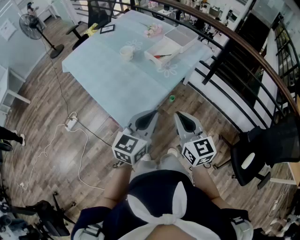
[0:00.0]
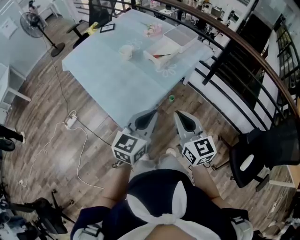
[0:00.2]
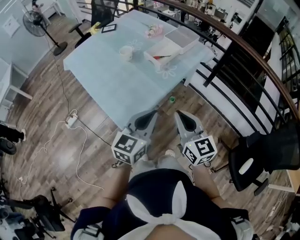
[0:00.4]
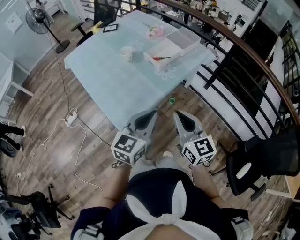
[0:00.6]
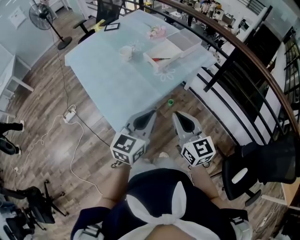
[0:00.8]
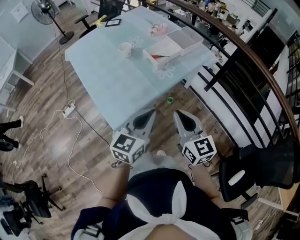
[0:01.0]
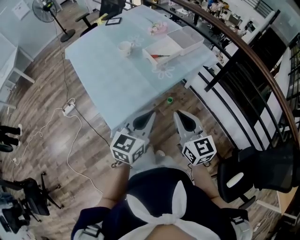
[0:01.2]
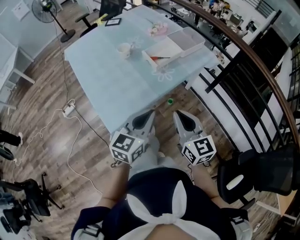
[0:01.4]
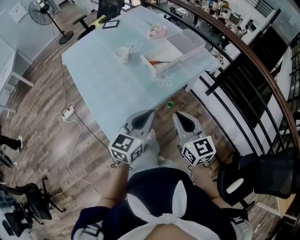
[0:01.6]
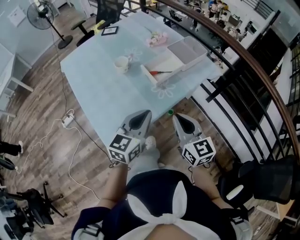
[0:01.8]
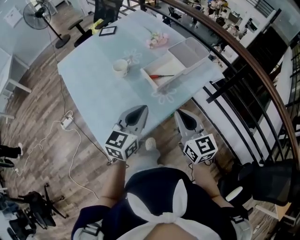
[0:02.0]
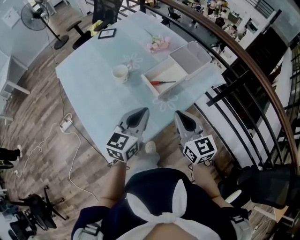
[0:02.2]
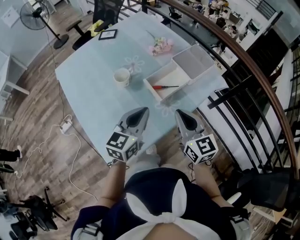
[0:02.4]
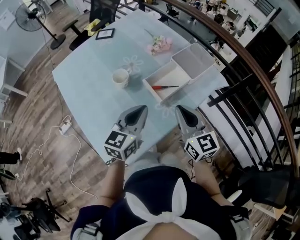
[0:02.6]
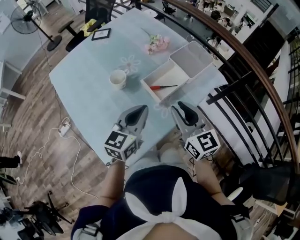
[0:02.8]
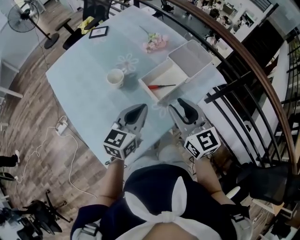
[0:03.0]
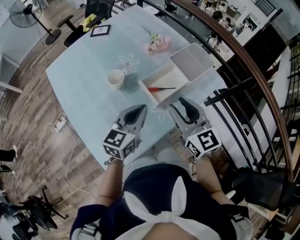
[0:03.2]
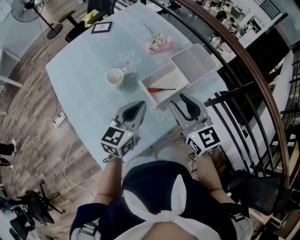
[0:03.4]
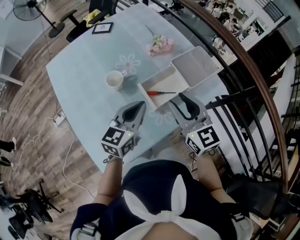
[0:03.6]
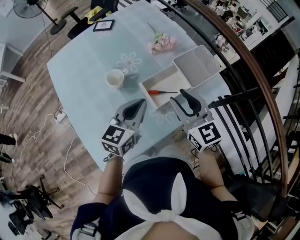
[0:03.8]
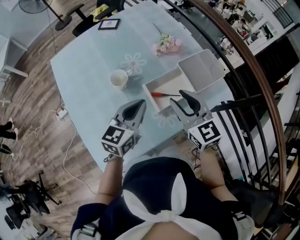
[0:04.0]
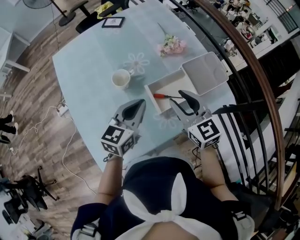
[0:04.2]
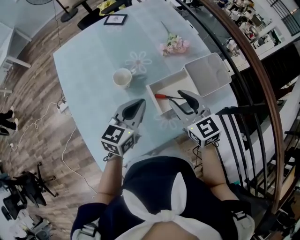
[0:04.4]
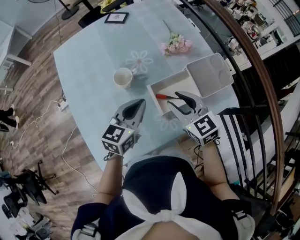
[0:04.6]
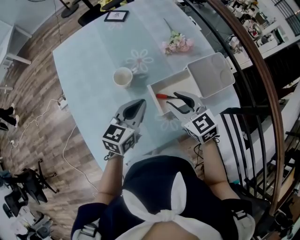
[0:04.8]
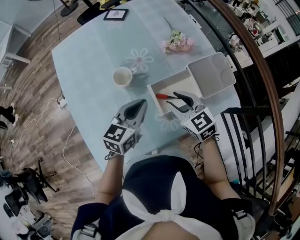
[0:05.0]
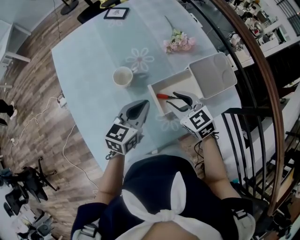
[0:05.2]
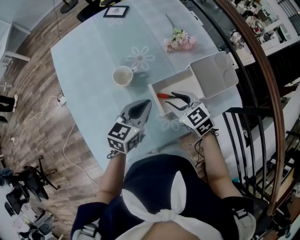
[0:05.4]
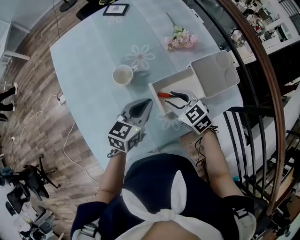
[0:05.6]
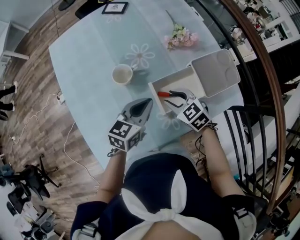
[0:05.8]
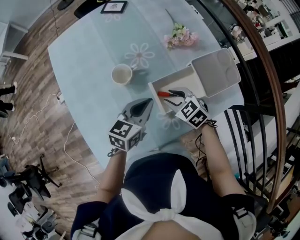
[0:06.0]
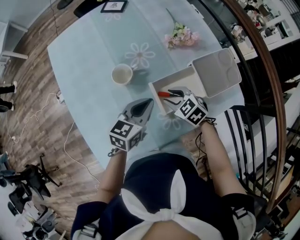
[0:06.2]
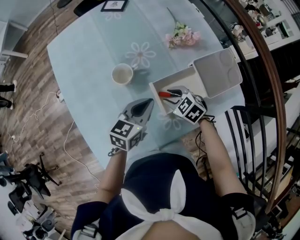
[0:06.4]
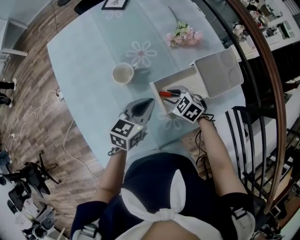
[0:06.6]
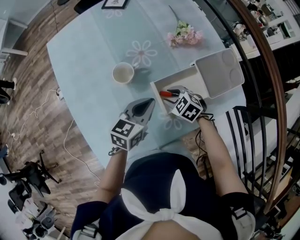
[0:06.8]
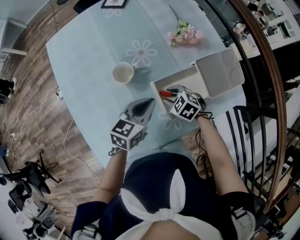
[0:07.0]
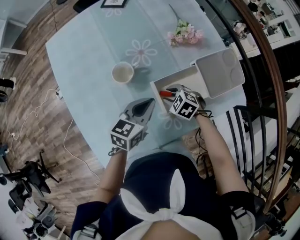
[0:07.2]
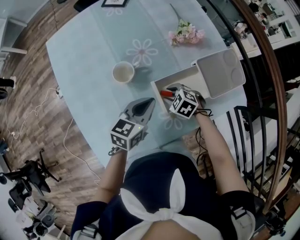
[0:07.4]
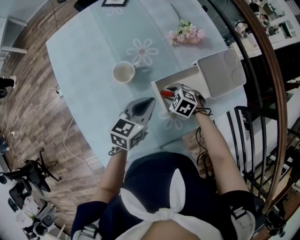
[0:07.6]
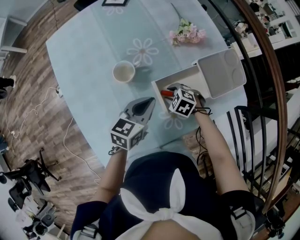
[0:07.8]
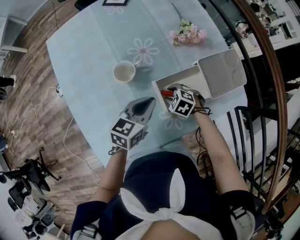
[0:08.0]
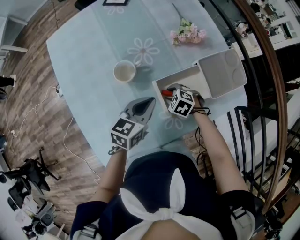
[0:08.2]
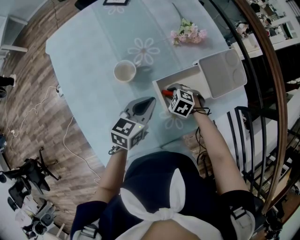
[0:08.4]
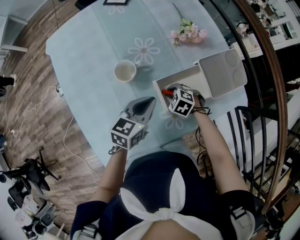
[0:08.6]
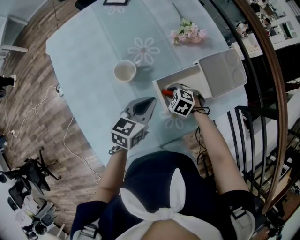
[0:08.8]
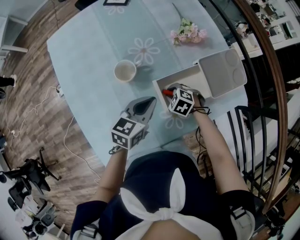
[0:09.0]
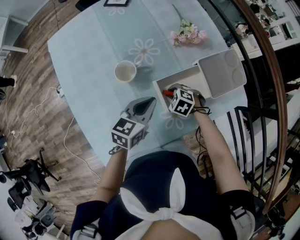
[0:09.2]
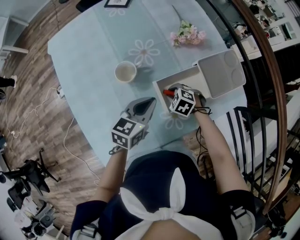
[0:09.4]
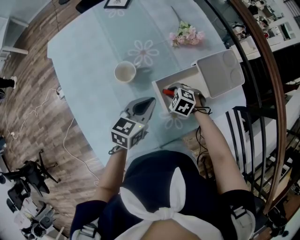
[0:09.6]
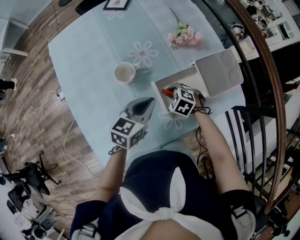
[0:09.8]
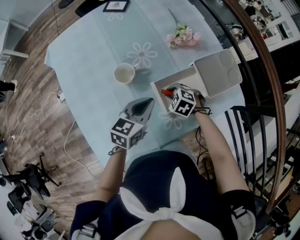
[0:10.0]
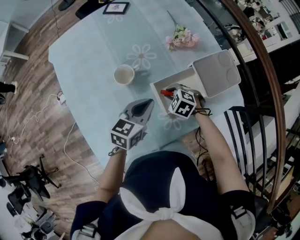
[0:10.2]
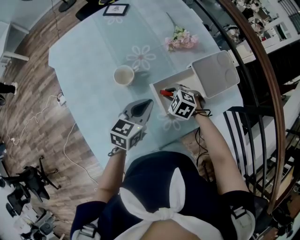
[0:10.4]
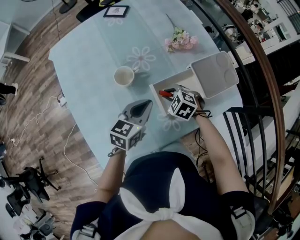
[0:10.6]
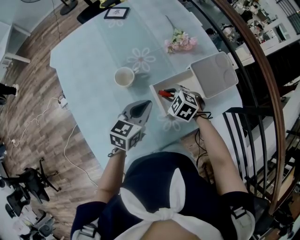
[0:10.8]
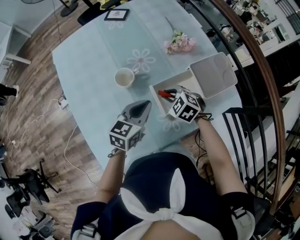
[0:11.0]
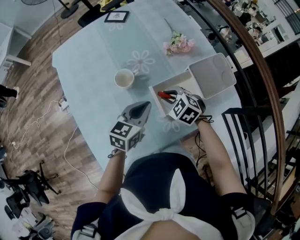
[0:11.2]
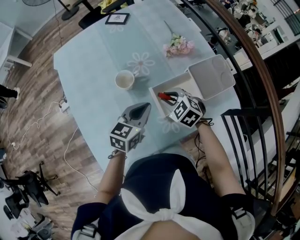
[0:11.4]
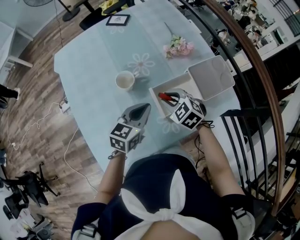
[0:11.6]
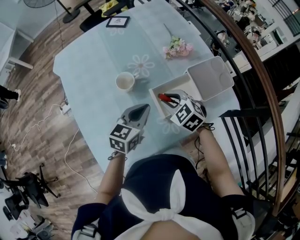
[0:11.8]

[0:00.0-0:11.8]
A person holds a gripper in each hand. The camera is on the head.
0:00.0 to 0:01.4: Both grippers move to the right and forward, some 15 cm.
0:01.4 to 0:03.0: Both grippers travel together forward, some 30 cm. The right gripper opens its fingers.
0:03.0 to 0:04.4: The grippers both shift forward by about 10 cm. The right gripper turns by about 20 degrees.
0:04.4 to 0:06.0: The left gripper travels downward by some 5 cm, while the right gripper shifts approximately 15 cm downward, and changes its angle by approximately 30 degrees.
0:06.0 to 0:07.4: The right gripper moves downward, roughly 10 cm, and swivels about 20 degrees.
0:07.4 to 0:08.8: The grippers move only a little.
0:08.8 to 0:10.4: The right gripper travels upward by approximately 5 cm.
0:10.4 to 0:11.8: The right gripper shifts approximately 10 cm upward.

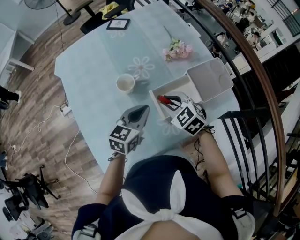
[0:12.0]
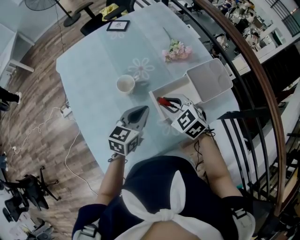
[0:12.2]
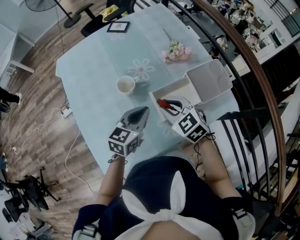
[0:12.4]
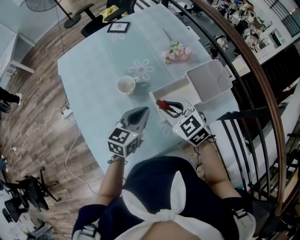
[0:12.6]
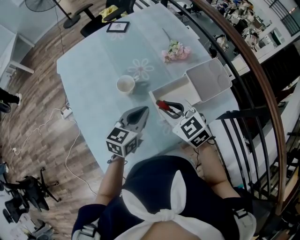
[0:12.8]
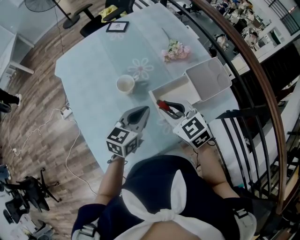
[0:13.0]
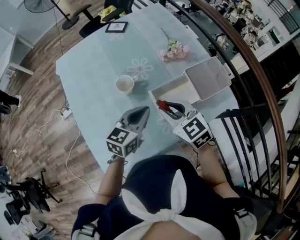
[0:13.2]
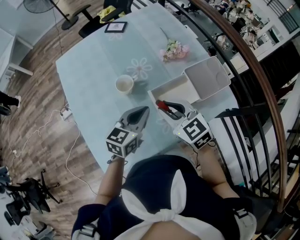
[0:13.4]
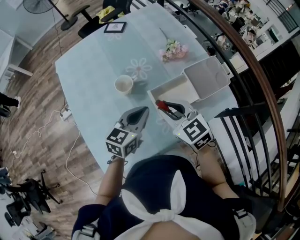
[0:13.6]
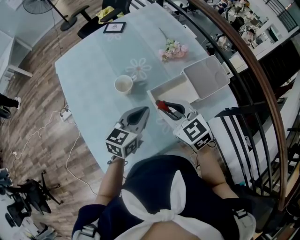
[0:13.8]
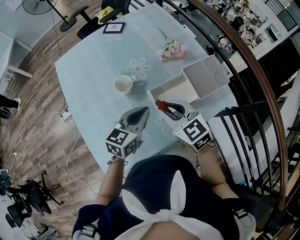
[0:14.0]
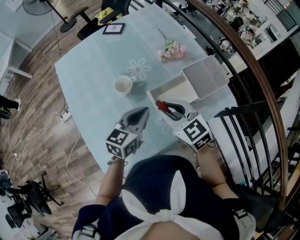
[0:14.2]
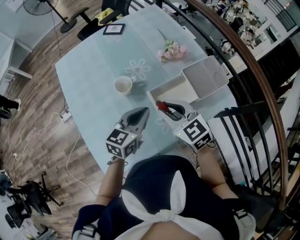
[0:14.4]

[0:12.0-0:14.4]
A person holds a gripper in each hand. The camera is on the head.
0:12.0 to 0:13.2: The right gripper moves upward, about 5 cm.
0:13.2 to 0:14.4: The grippers stay close to where they were, moving slightly.

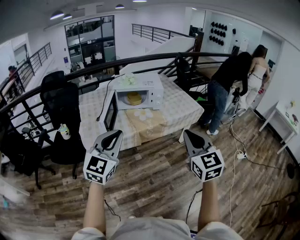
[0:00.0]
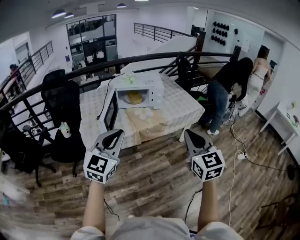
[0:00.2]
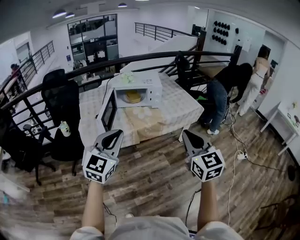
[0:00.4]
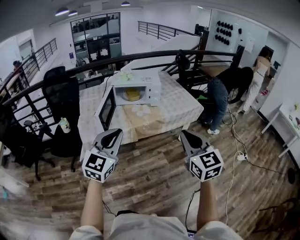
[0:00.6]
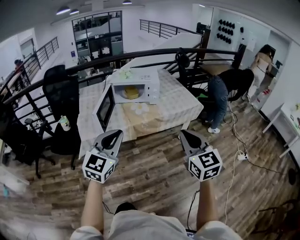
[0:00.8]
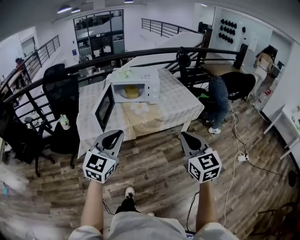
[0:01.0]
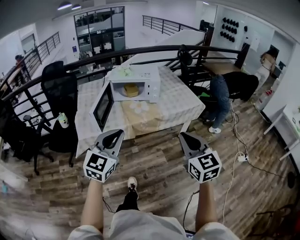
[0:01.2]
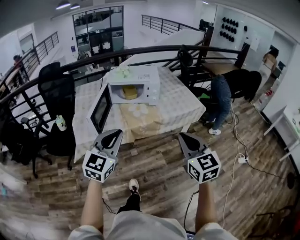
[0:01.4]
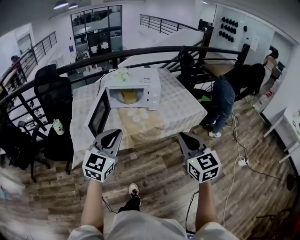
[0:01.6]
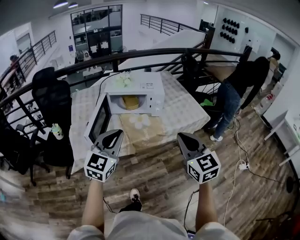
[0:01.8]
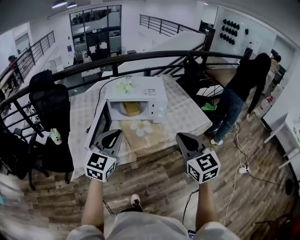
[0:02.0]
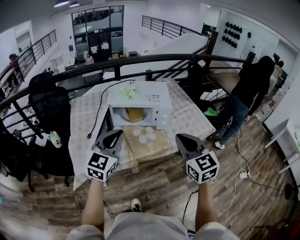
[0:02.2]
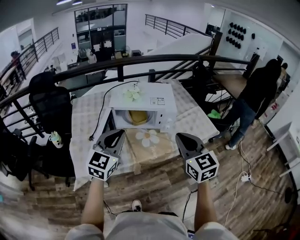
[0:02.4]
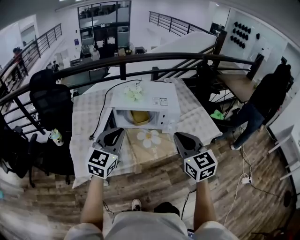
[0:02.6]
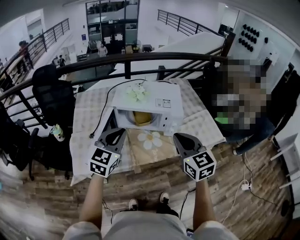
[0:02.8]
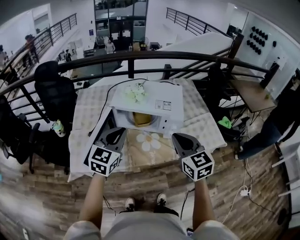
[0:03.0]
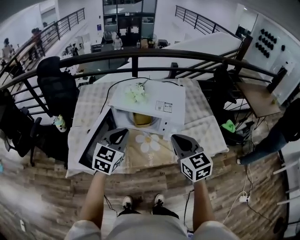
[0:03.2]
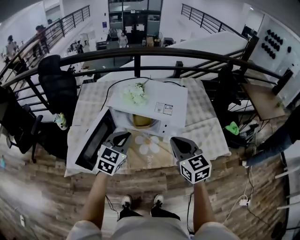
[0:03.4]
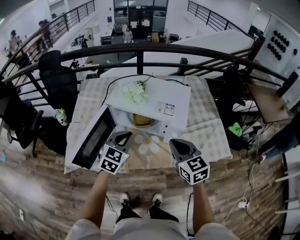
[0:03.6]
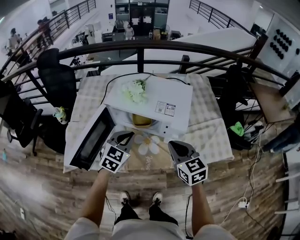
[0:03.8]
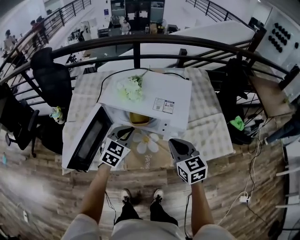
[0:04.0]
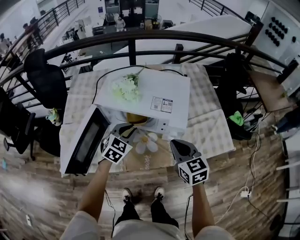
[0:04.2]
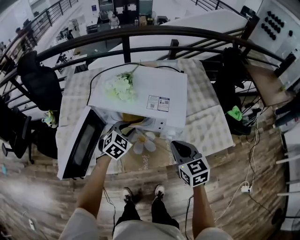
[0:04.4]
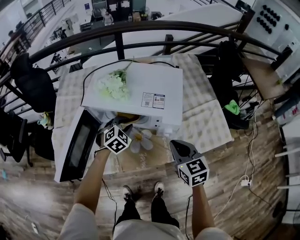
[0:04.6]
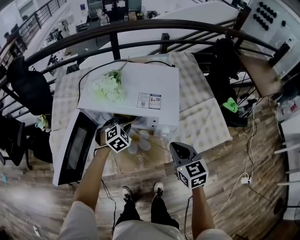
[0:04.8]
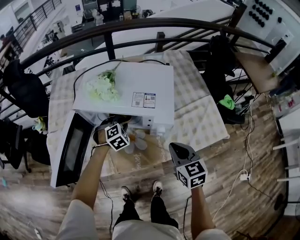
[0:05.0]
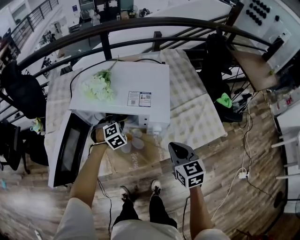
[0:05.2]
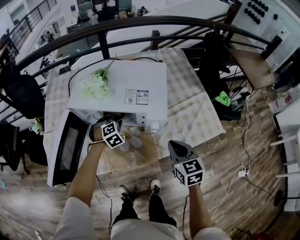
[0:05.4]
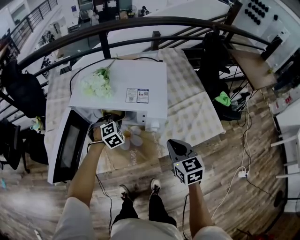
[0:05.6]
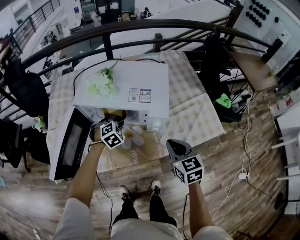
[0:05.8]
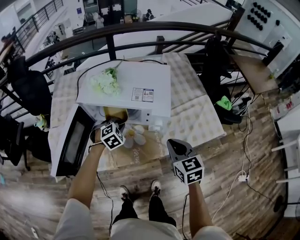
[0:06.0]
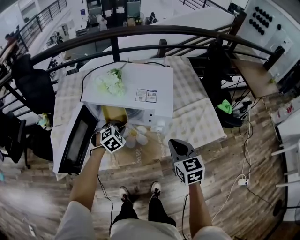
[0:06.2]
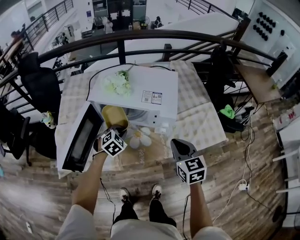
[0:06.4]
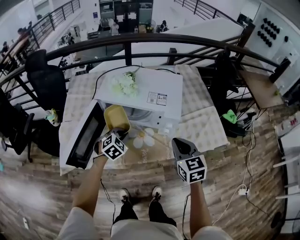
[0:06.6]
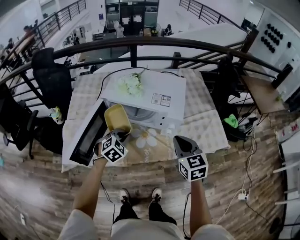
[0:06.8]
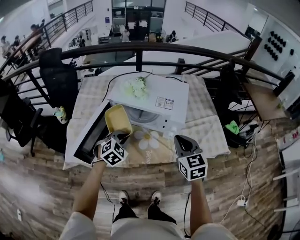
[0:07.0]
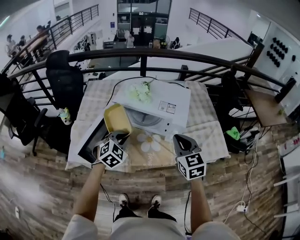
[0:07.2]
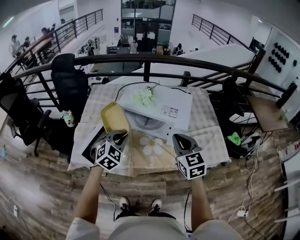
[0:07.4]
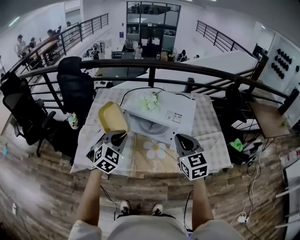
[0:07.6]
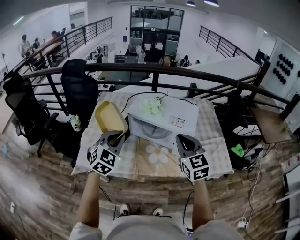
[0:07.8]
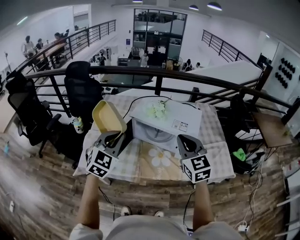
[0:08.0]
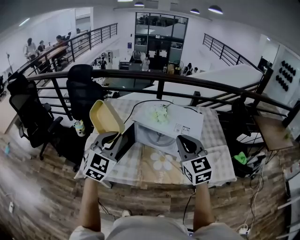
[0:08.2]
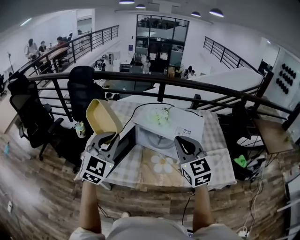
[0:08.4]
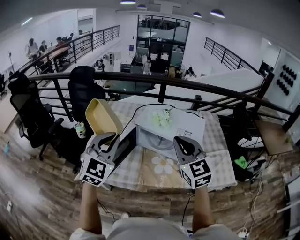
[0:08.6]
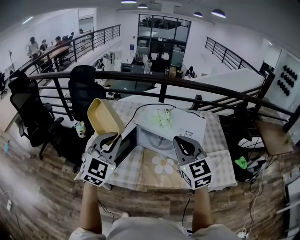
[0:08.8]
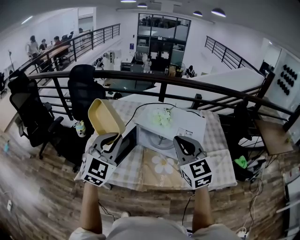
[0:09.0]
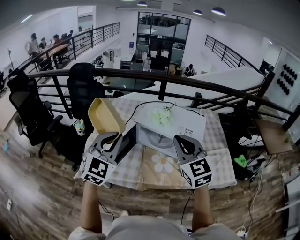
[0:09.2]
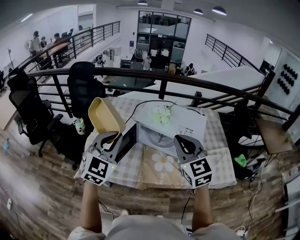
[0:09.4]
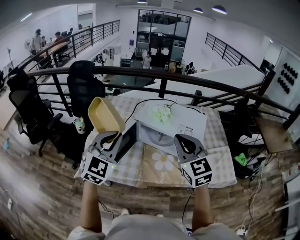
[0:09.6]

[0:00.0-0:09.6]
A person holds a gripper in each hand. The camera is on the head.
0:00.0 to 0:01.6: The right gripper shifts roughly 15 cm forward, downward and to the right. The left gripper moves forward, to the right and downward, some 15 cm.
0:01.6 to 0:03.2: Both grippers move forward, approximately 35 cm.
0:03.2 to 0:04.8: The left gripper travels downward and forward by approximately 30 cm, points its fingers some 30 degrees further downward, and opens up, while the right gripper shifts some 20 cm downward, to the right and forward.
0:04.8 to 0:06.4: The left gripper moves backward, about 10 cm, and closes its fingers; the right gripper changes place by about 5 cm.
0:06.4 to 0:08.0: The right gripper heads upward and to the left, covering roughly 20 cm, and swivels roughly 30 degrees. Meanwhile the left gripper shifts about 35 cm upward, to the left and backward, and tips its fingers upward by approximately 30 degrees.
0:08.0 to 0:09.6: The right gripper is displaced to the left by about 5 cm. The left gripper shifts by some 5 cm.
